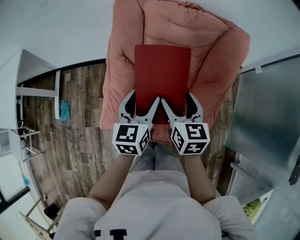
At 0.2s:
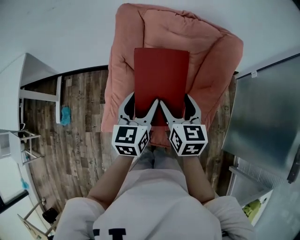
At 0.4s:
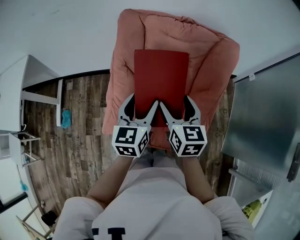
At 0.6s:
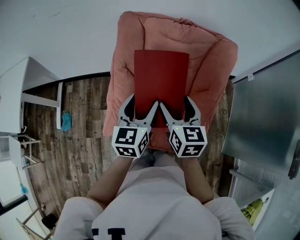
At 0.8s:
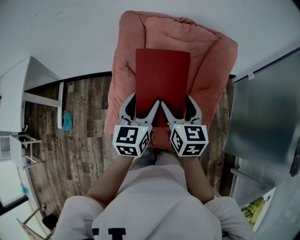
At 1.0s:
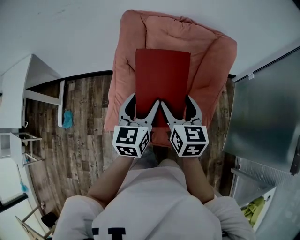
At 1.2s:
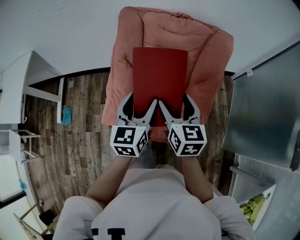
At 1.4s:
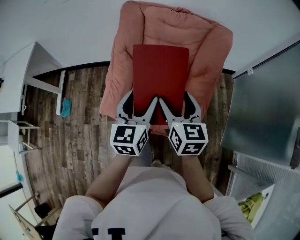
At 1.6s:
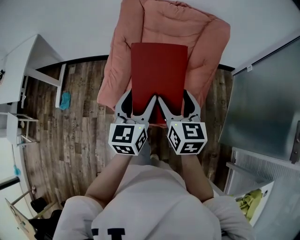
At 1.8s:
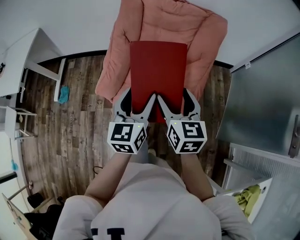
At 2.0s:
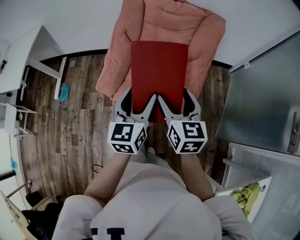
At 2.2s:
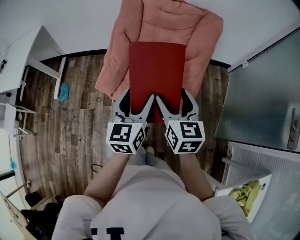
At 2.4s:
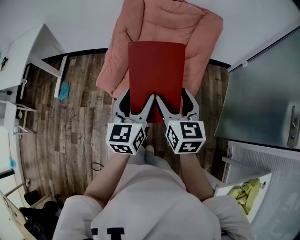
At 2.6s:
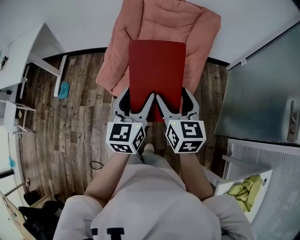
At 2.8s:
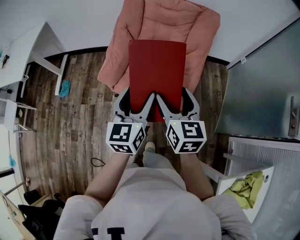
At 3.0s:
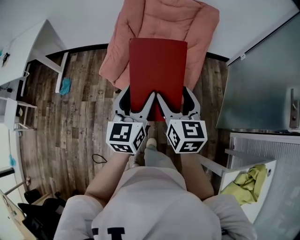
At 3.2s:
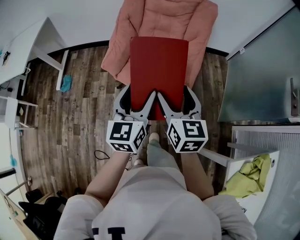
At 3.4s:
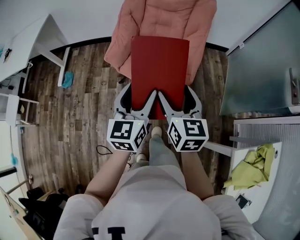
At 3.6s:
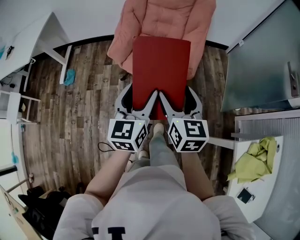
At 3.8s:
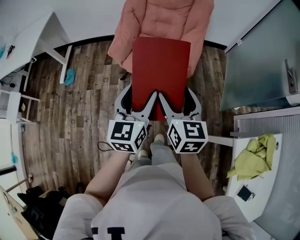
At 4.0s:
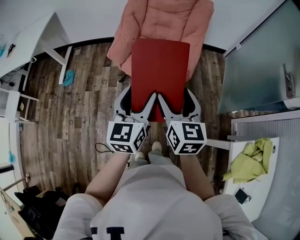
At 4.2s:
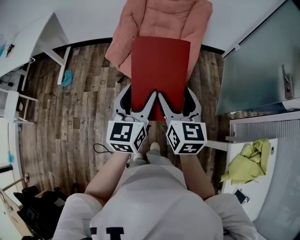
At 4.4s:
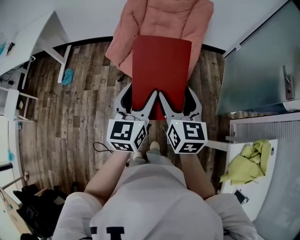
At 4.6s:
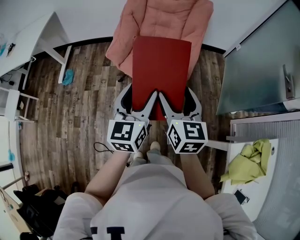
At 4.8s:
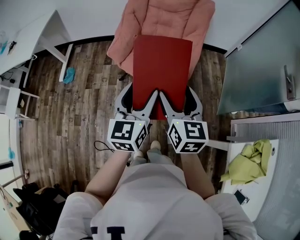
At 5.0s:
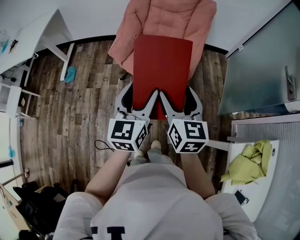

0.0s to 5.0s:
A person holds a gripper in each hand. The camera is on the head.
0.0s to 1.6s: The left gripper shifts some 15 cm backward, while the right gripper moves backward and upward, approximately 15 cm.
1.6s to 3.4s: Both grippers move backward, some 30 cm.
3.4s to 5.0s: The grippers both shift backward by about 5 cm.

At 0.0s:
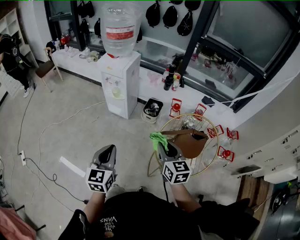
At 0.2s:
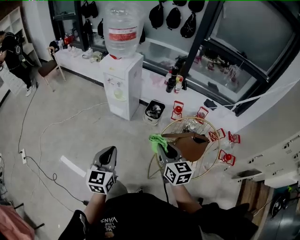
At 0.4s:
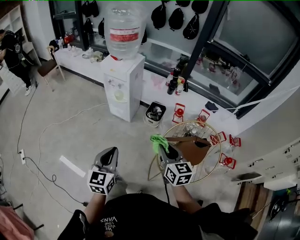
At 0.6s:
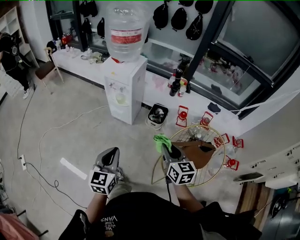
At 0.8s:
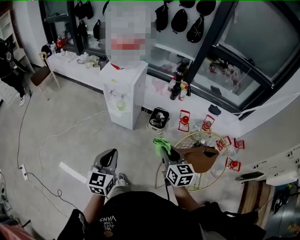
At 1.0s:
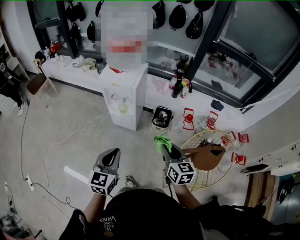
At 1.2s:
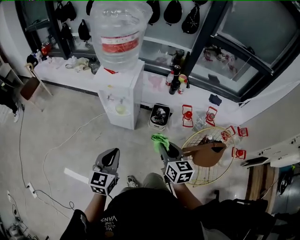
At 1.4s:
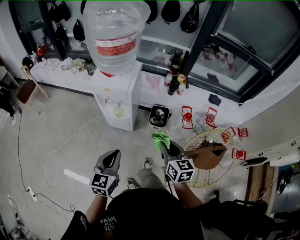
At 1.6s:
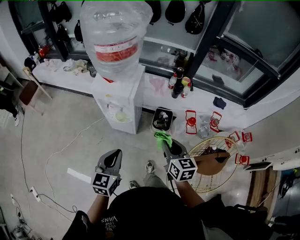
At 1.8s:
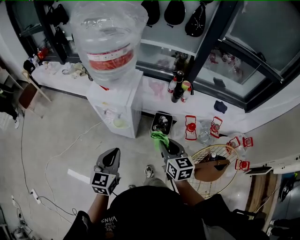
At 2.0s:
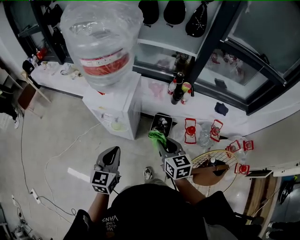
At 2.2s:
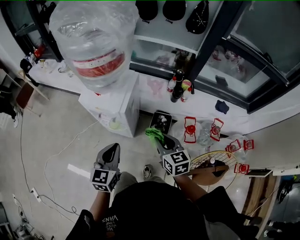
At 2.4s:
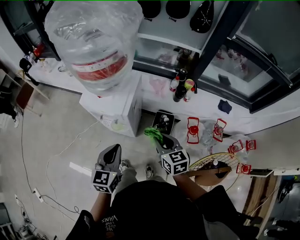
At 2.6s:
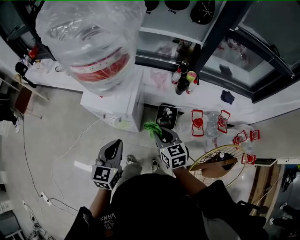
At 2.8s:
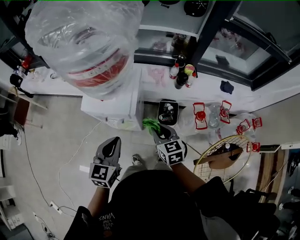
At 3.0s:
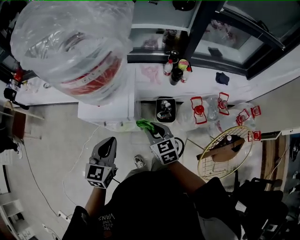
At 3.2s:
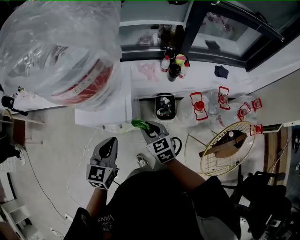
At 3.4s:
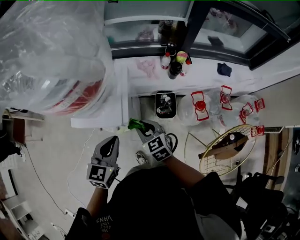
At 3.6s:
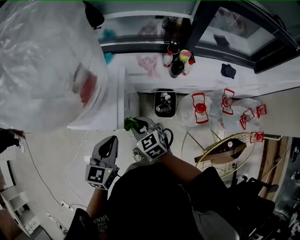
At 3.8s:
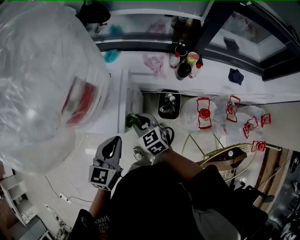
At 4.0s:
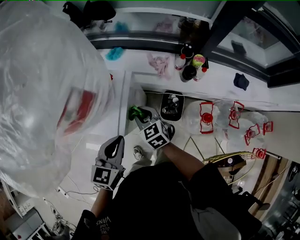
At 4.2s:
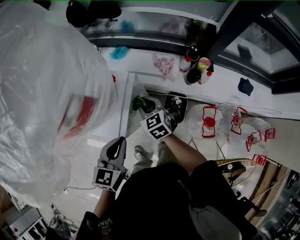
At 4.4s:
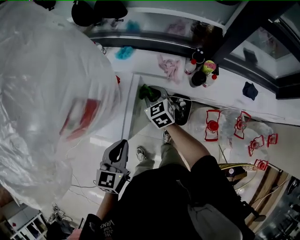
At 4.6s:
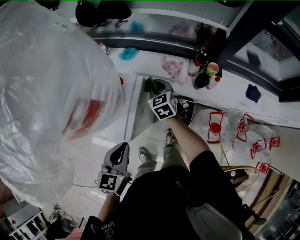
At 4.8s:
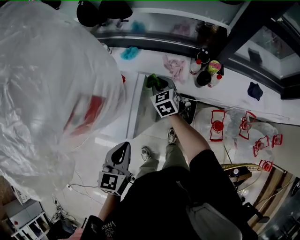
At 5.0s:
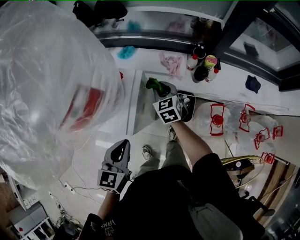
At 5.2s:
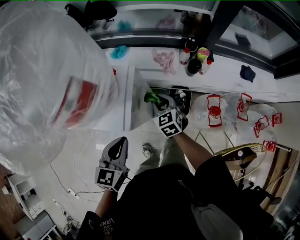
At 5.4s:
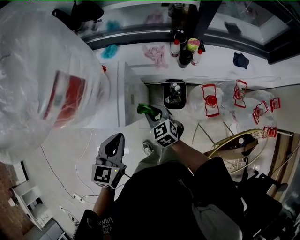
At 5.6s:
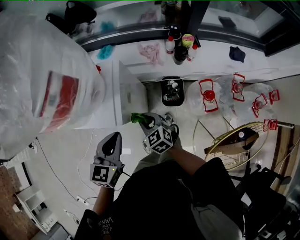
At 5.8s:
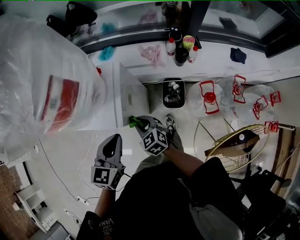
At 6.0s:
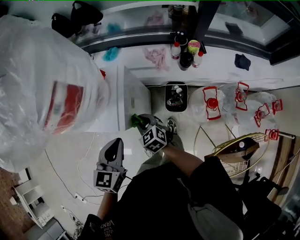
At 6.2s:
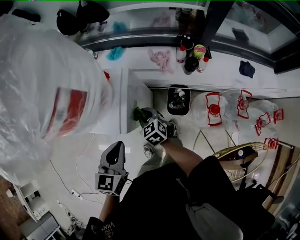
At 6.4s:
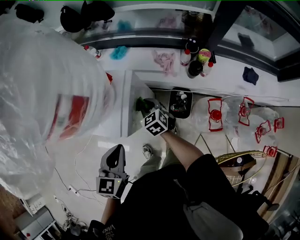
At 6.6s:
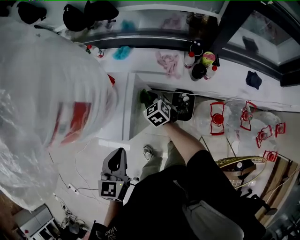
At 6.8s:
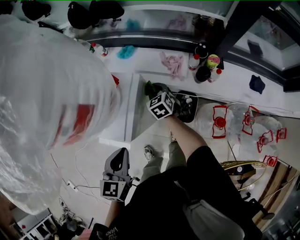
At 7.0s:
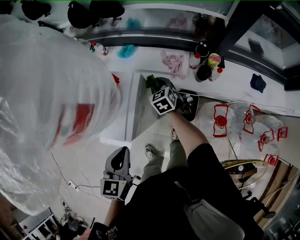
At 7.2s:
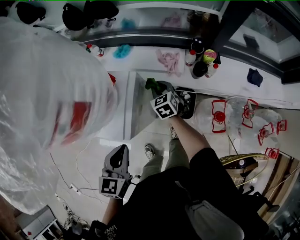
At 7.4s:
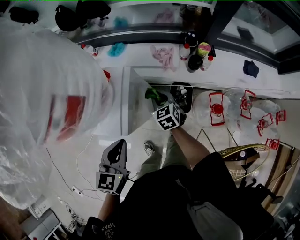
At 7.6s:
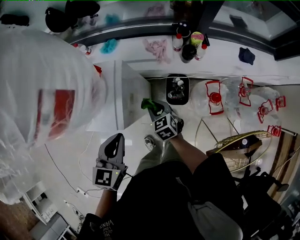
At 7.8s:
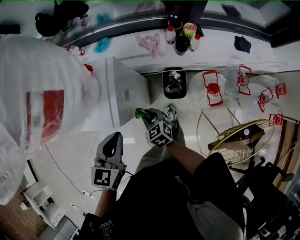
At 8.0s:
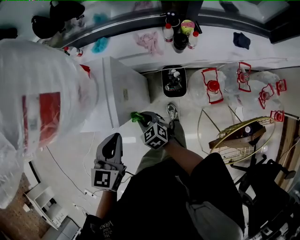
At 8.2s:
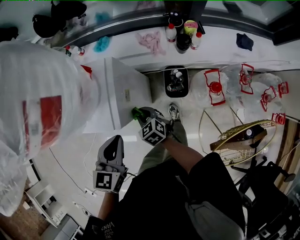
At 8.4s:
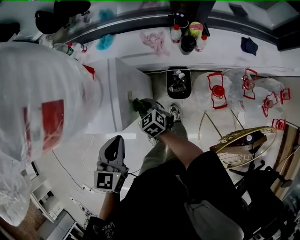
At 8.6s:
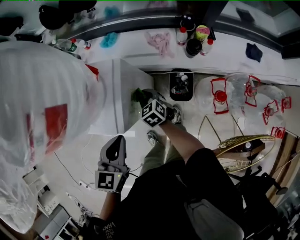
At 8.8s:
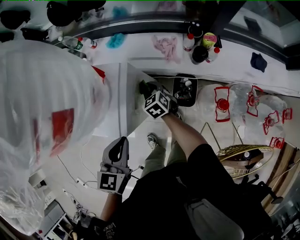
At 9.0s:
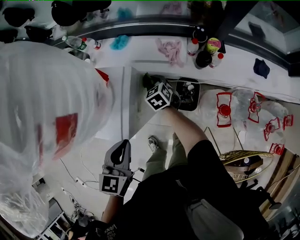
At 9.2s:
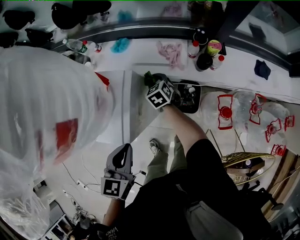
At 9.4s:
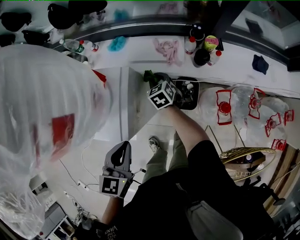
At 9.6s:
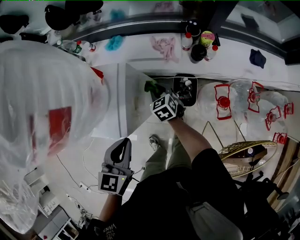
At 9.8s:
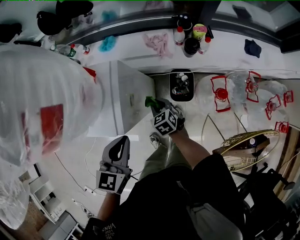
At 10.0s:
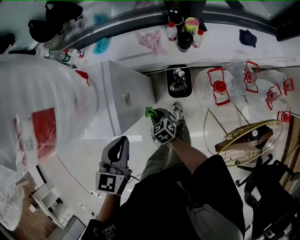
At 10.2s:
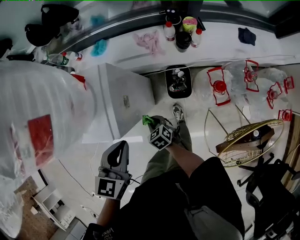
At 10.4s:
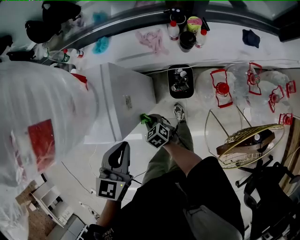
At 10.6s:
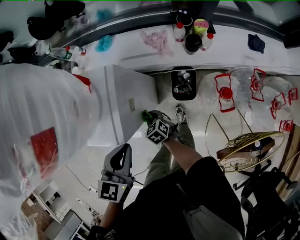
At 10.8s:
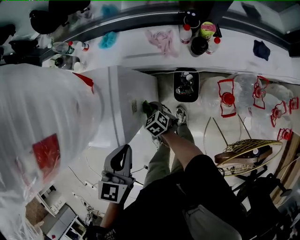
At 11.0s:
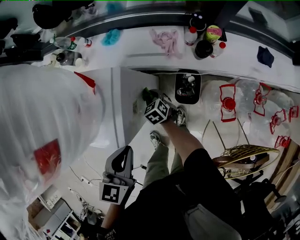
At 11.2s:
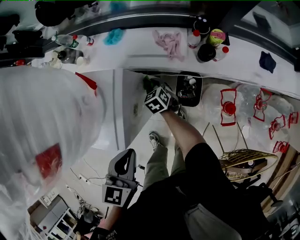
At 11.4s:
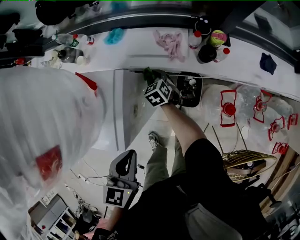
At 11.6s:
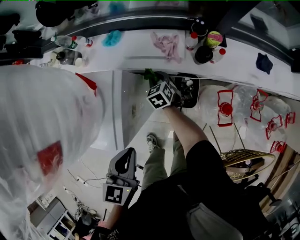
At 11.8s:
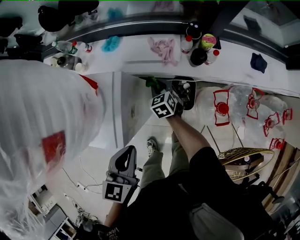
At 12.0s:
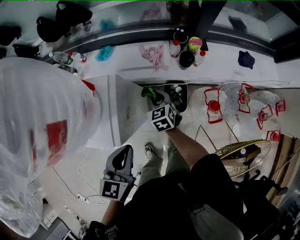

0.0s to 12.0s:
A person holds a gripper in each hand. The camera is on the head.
0.0s to 1.6s: The grippers both shift forward by roughly 30 cm.
1.6s to 3.0s: The left gripper is displaced forward by roughly 20 cm. The right gripper shifts about 25 cm forward, to the left and downward.
3.0s to 4.4s: The right gripper is displaced forward by approximately 25 cm. Meanwhile the left gripper shifts roughly 15 cm to the right and forward.
4.4s to 6.0s: The right gripper moves backward, approximately 20 cm.
6.0s to 7.6s: The right gripper is displaced to the right by about 5 cm, and moves approximately 20 cm forward and comes back.
7.6s to 9.0s: The right gripper travels forward by roughly 15 cm.
9.0s to 10.4s: The right gripper travels backward by approximately 25 cm.
10.4s to 12.0s: The right gripper goes about 25 cm forward, to the right and upward, and turns by some 20 degrees.

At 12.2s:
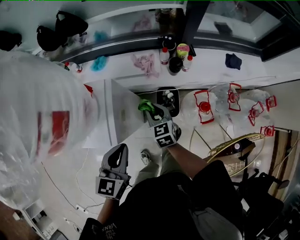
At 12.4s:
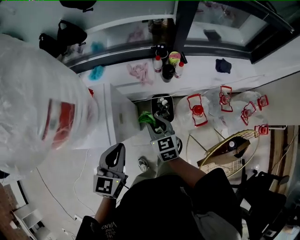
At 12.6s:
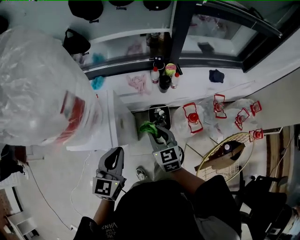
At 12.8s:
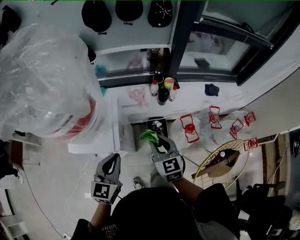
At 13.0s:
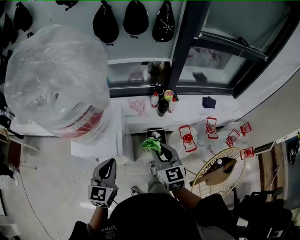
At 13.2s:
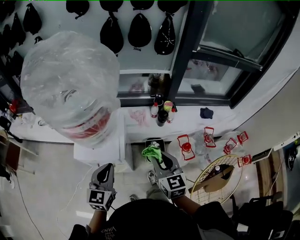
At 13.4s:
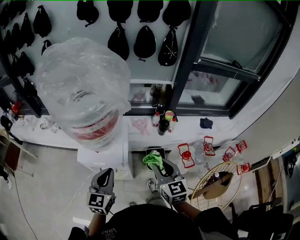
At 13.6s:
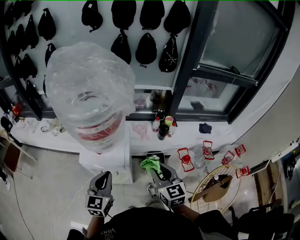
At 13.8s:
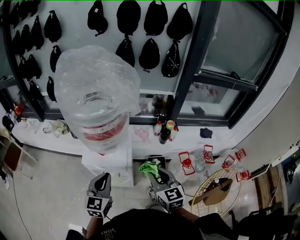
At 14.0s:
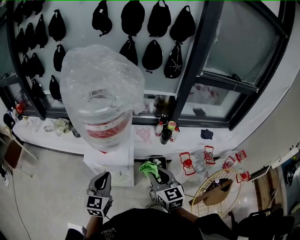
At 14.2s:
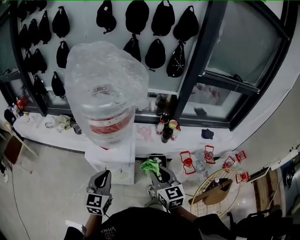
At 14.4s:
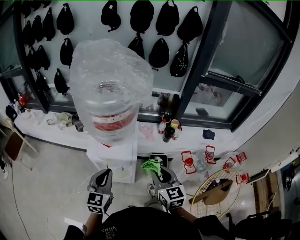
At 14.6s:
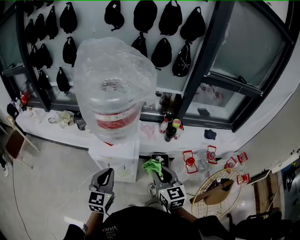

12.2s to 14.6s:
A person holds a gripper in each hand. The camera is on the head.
12.2s to 13.4s: The right gripper heads upward and backward, covering about 30 cm, and swivels approximately 20 degrees; the left gripper is displaced to the left, backward and upward by about 15 cm, and changes its angle by about 20 degrees.
13.4s to 14.6s: The left gripper heads to the left, covering about 5 cm; the right gripper shifts roughly 10 cm to the left and backward.

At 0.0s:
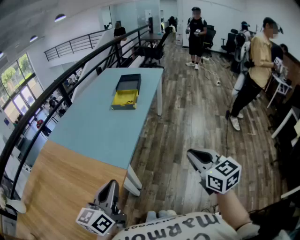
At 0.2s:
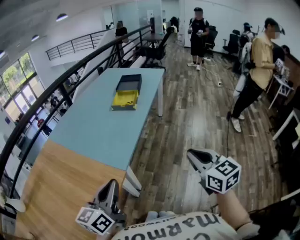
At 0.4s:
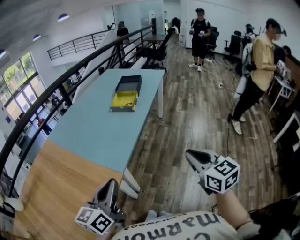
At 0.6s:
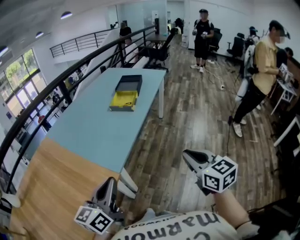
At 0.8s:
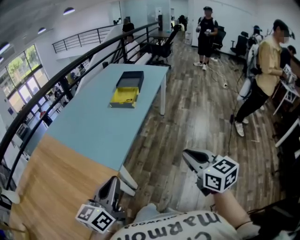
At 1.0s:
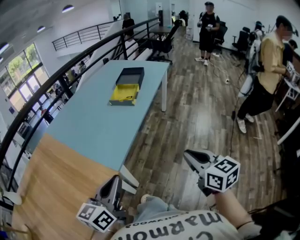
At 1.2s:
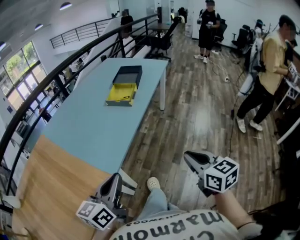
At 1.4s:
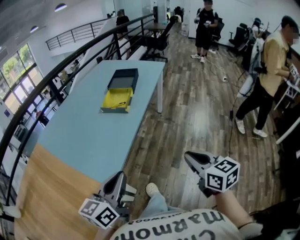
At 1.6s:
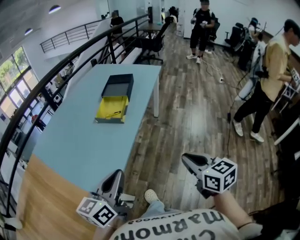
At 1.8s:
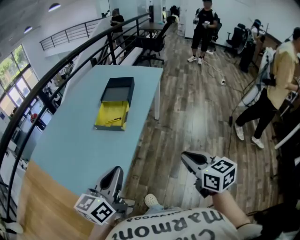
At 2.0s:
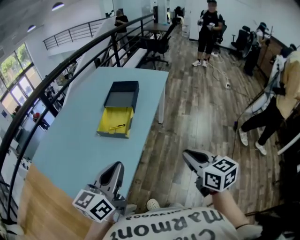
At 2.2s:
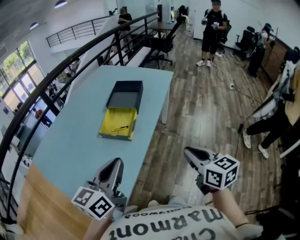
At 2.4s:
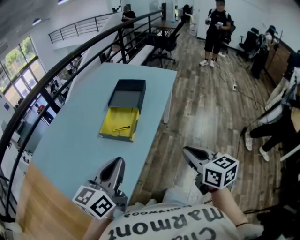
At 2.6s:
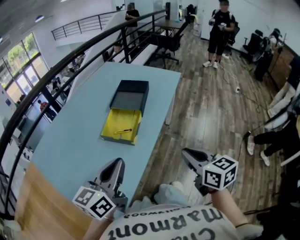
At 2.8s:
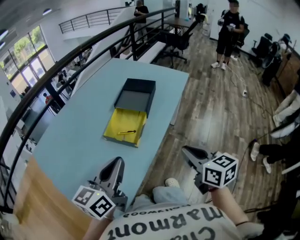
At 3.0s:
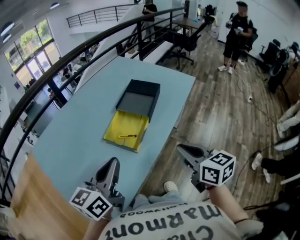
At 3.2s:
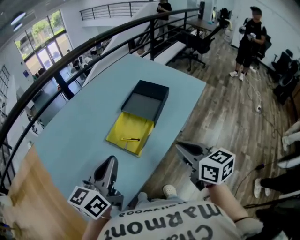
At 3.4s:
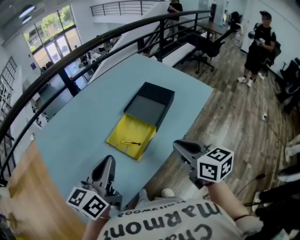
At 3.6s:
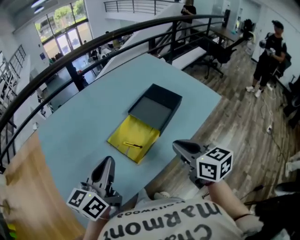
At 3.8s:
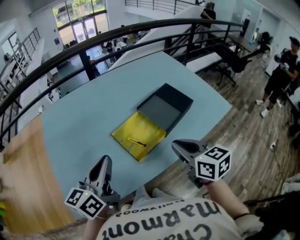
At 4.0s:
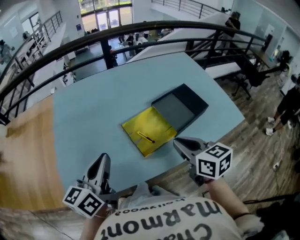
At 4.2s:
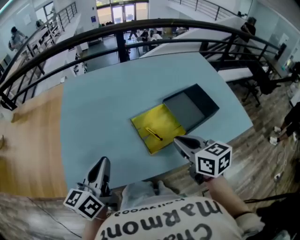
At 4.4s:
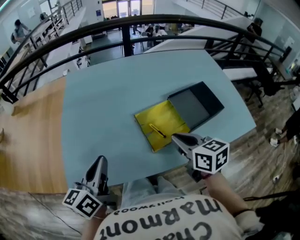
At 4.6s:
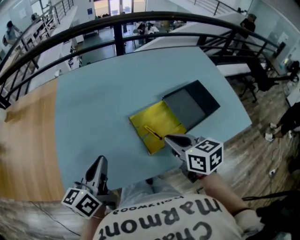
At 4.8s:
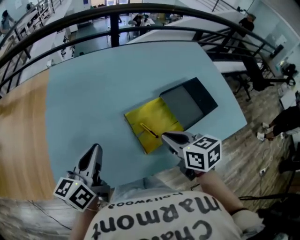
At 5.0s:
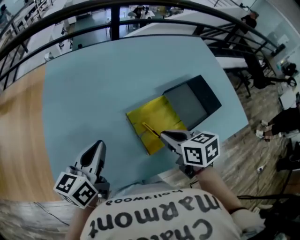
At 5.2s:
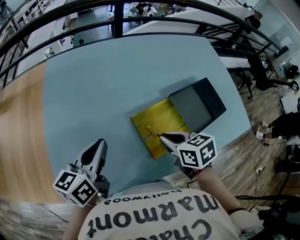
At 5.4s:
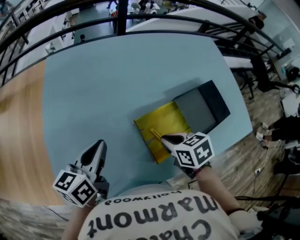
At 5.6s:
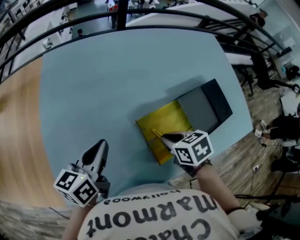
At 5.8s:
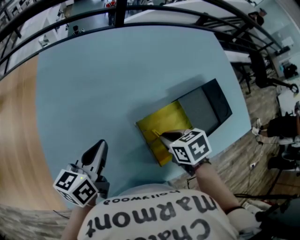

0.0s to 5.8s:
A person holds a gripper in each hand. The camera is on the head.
0.0s to 1.4s: The right gripper travels forward, to the right and downward by approximately 15 cm, while the left gripper goes about 20 cm forward and to the right.
1.4s to 2.8s: The grippers both shift forward by about 30 cm.
2.8s to 4.4s: The right gripper shifts by about 25 cm, and swivels about 50 degrees; the left gripper ends up approximately 10 cm from where it was, and changes its angle by about 60 degrees.
4.4s to 5.8s: The left gripper shifts about 15 cm forward and downward, while the right gripper goes some 15 cm downward and forward, and tips its fingers downward by some 40 degrees.
